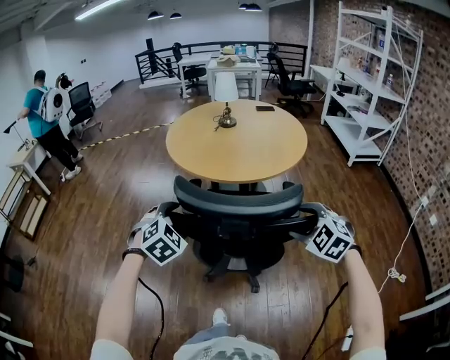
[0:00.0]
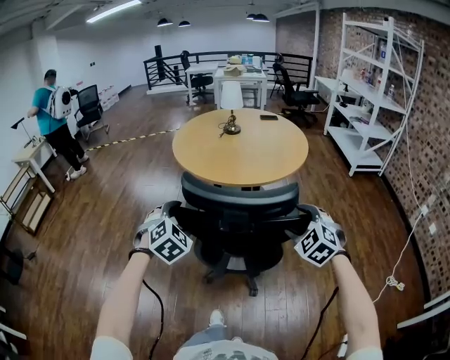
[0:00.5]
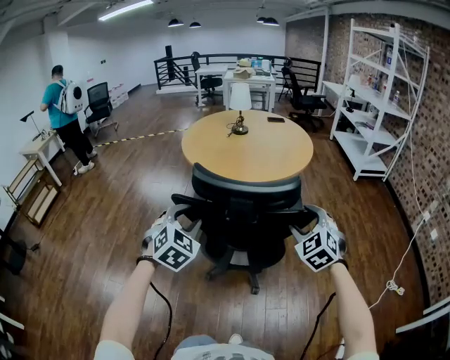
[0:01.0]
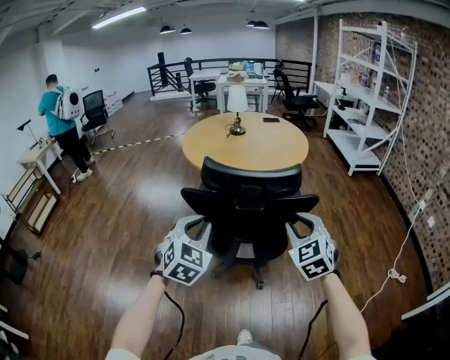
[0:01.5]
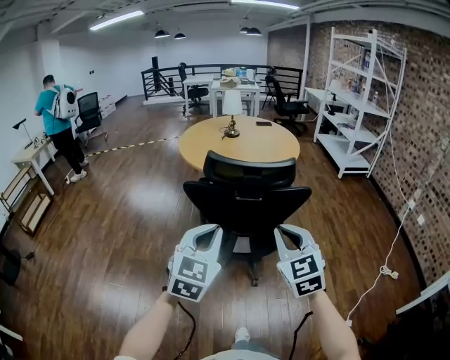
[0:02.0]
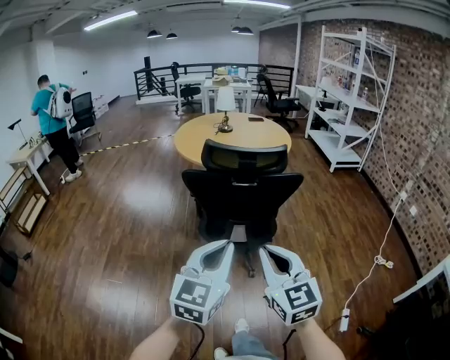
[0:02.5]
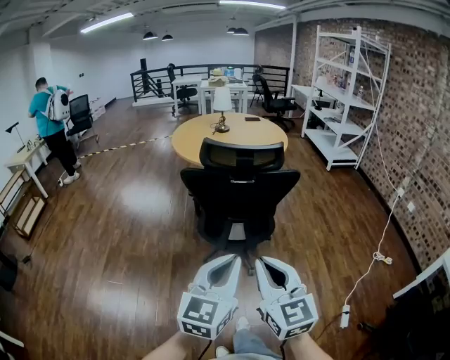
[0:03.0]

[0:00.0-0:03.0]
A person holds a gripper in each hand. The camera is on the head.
0:00.0 to 0:01.5: The right gripper shifts roughly 15 cm backward, upward and to the left, turns by roughly 30 degrees, and closes its fingers. Meanwhile the left gripper travels backward and upward by about 15 cm, turns by approximately 20 degrees, and closes its fingers.
0:01.5 to 0:03.0: The grippers both shift backward by roughly 25 cm. The left gripper turns by about 40 degrees. The right gripper changes its angle by some 30 degrees, and closes up.

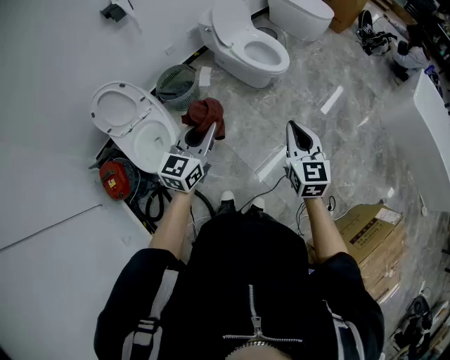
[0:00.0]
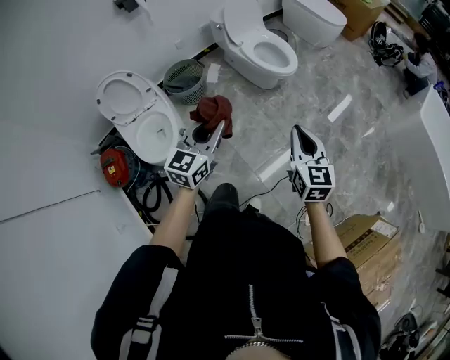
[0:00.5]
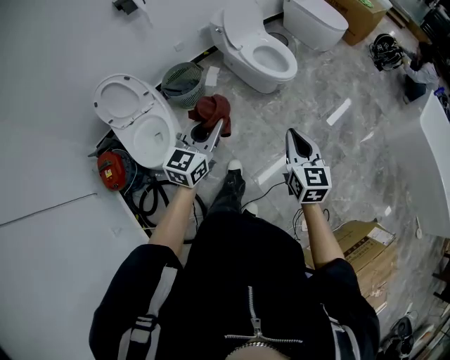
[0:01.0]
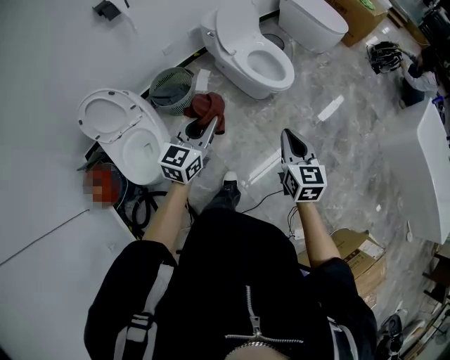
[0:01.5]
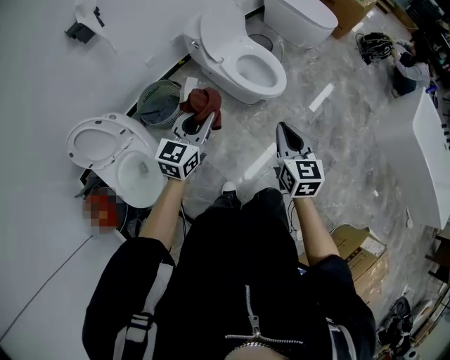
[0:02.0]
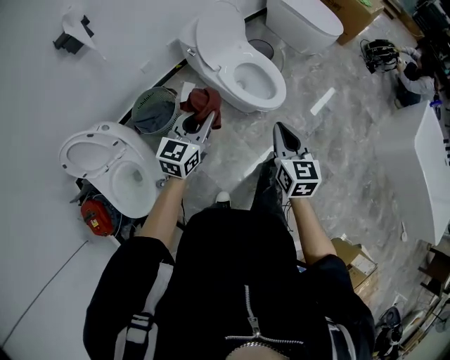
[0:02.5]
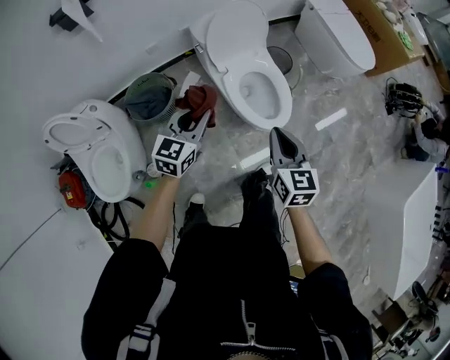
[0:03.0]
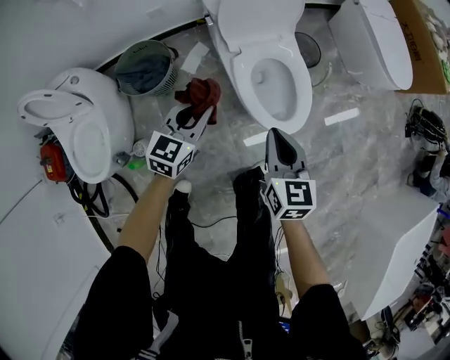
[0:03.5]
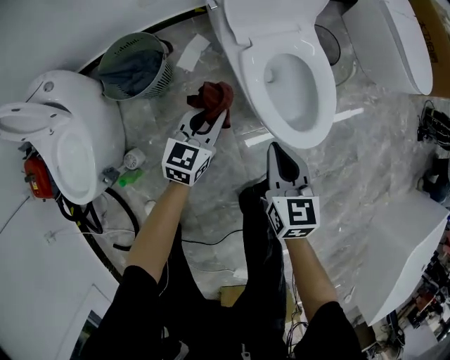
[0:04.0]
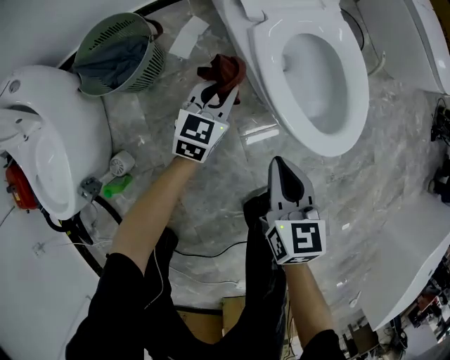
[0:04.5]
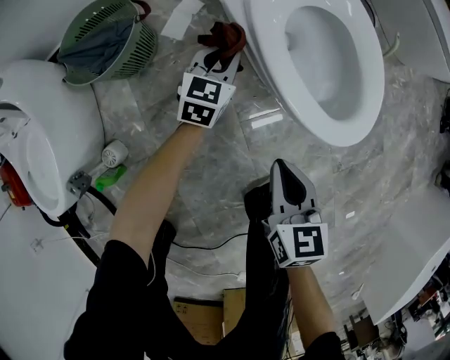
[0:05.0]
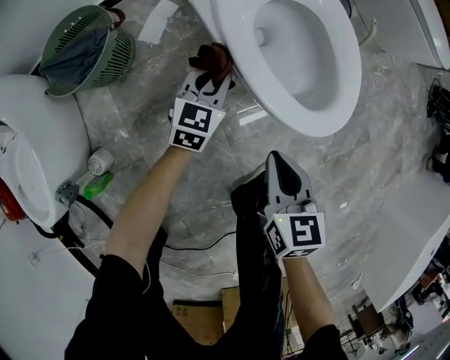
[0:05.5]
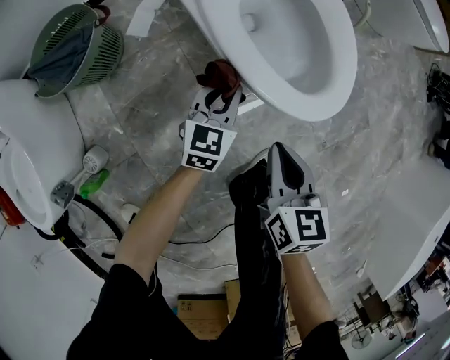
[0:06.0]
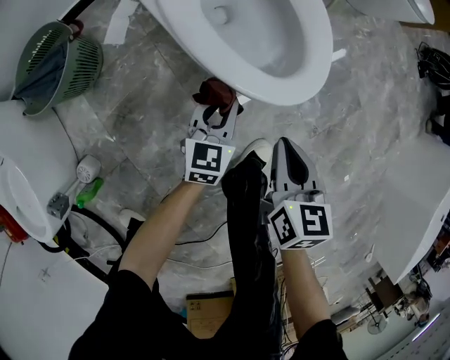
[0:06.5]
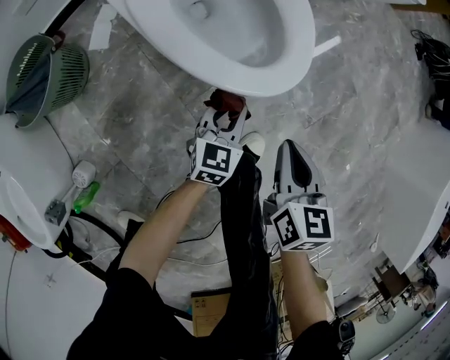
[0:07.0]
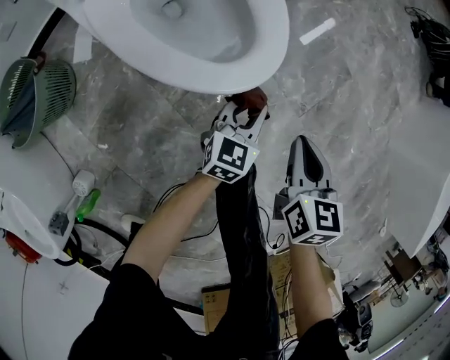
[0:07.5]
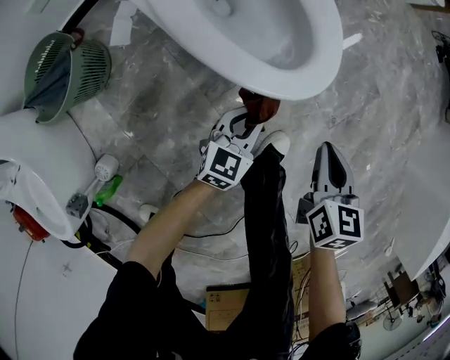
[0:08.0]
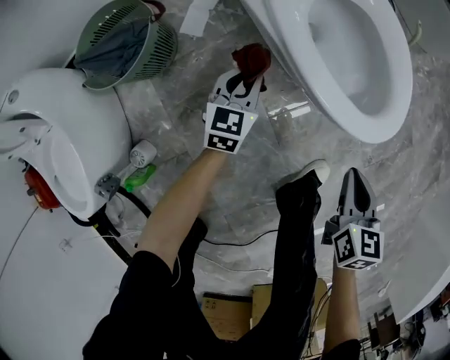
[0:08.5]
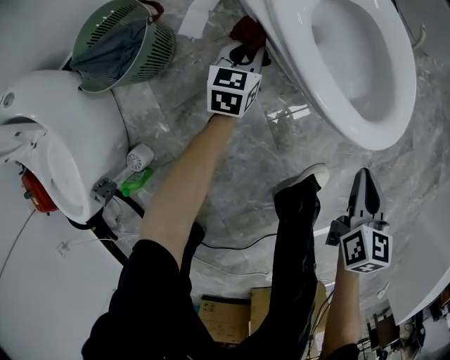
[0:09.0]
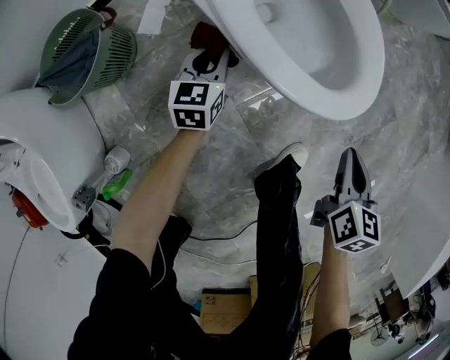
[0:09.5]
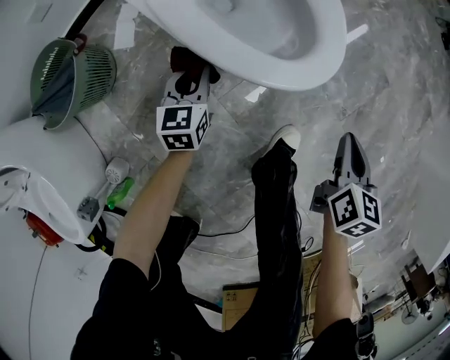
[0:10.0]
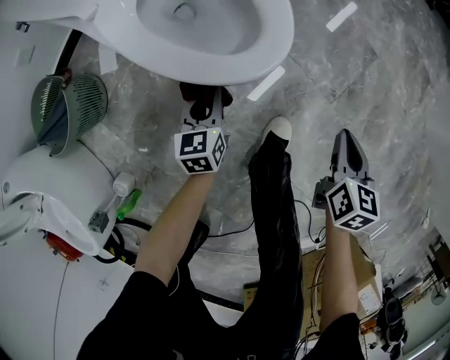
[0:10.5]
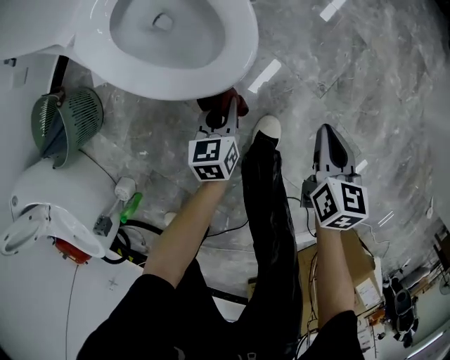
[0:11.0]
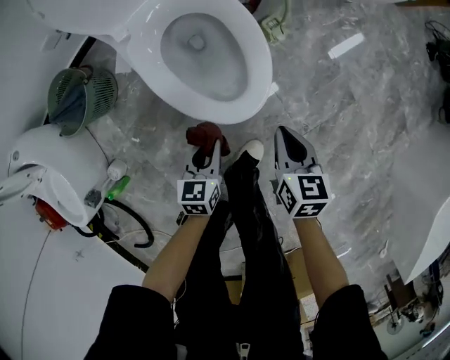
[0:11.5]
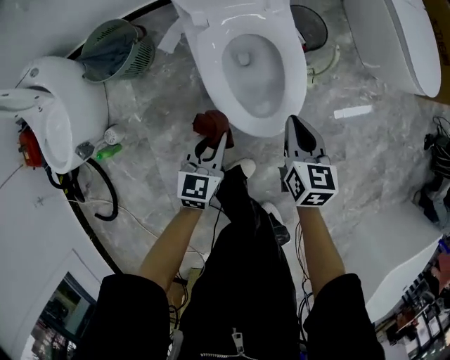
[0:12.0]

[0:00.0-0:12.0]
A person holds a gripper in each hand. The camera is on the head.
0:00.0 to 0:02.0: The two grippers go roughly 30 cm forward.
0:02.0 to 0:04.0: The grippers both shift downward and forward by about 50 cm. The right gripper rotates some 30 degrees; the left gripper swivels approximately 30 degrees.
0:04.0 to 0:06.0: Both grippers travel together downward and to the right, approximately 25 cm.
0:06.0 to 0:08.0: The right gripper shifts by approximately 15 cm, while the left gripper rotates some 20 degrees.
0:08.0 to 0:10.0: The right gripper reaches some 10 cm to the left, then returns. The left gripper goes roughly 20 cm to the left and forward, and changes its angle by approximately 20 degrees.
0:10.0 to 0:12.0: The right gripper changes place by about 25 cm, and rotates some 50 degrees. The left gripper shifts about 25 cm upward.

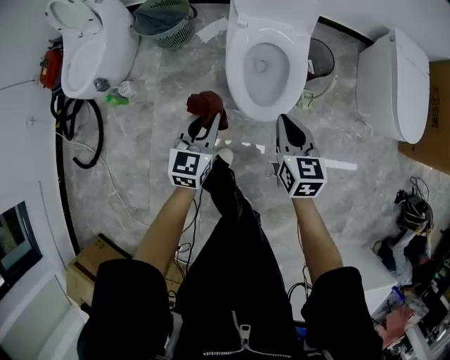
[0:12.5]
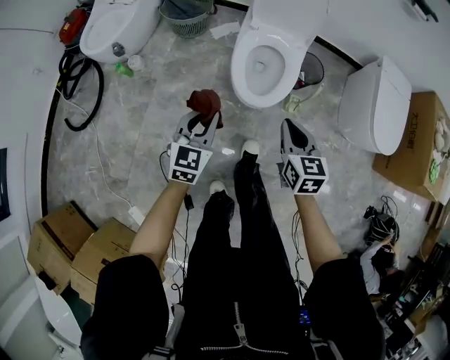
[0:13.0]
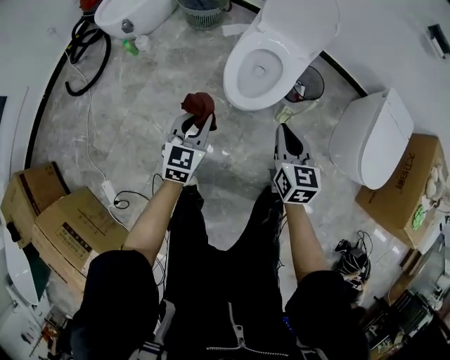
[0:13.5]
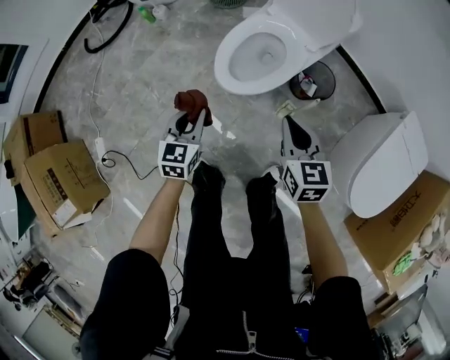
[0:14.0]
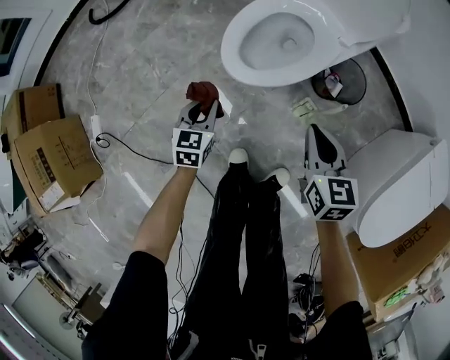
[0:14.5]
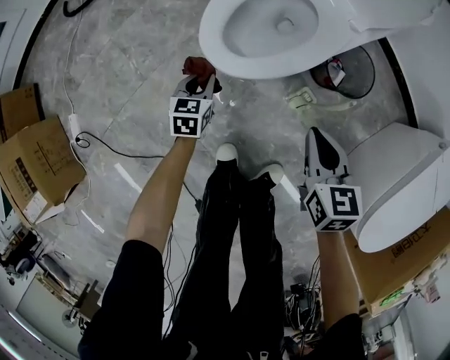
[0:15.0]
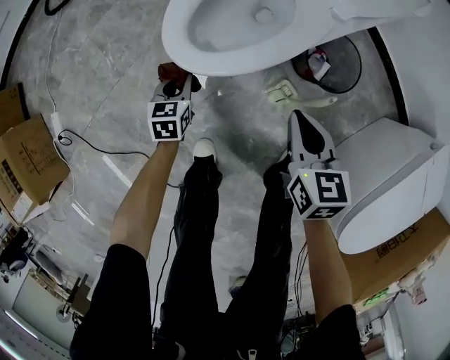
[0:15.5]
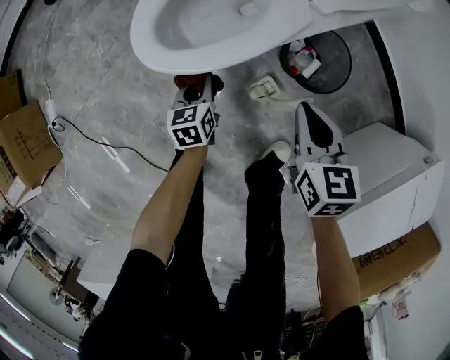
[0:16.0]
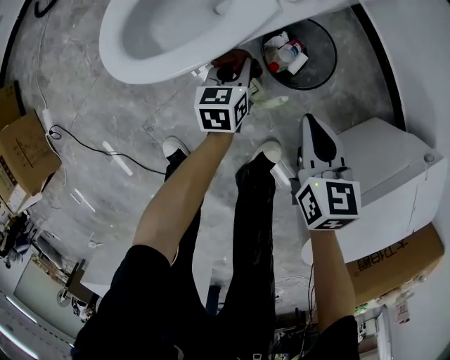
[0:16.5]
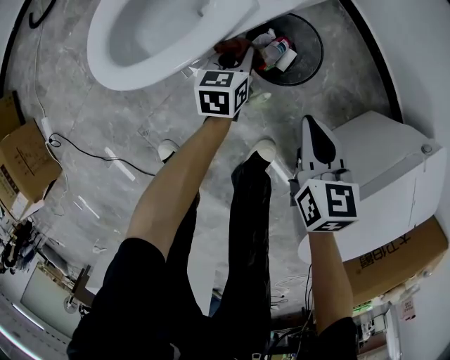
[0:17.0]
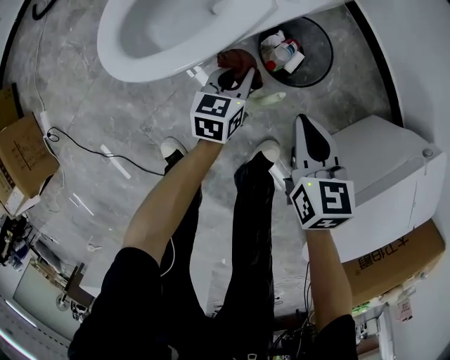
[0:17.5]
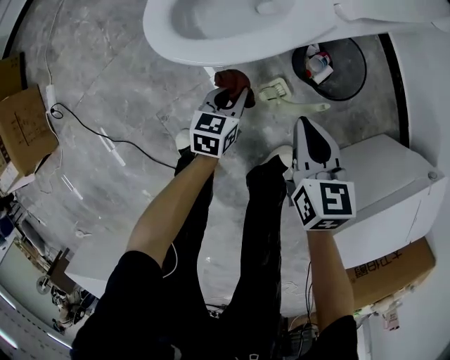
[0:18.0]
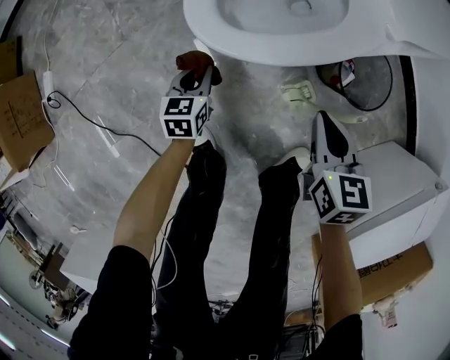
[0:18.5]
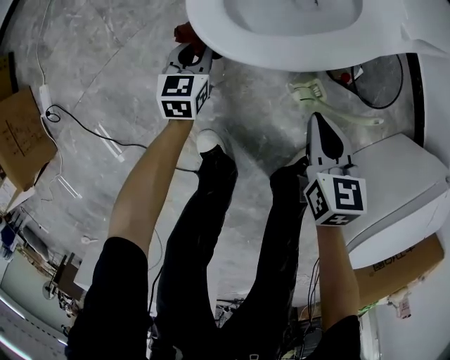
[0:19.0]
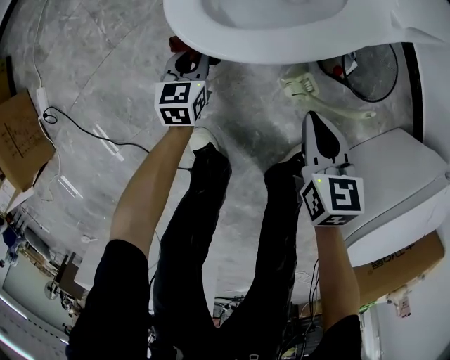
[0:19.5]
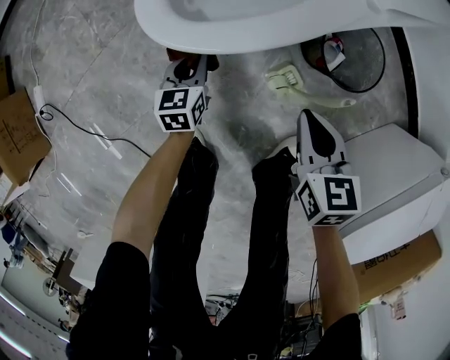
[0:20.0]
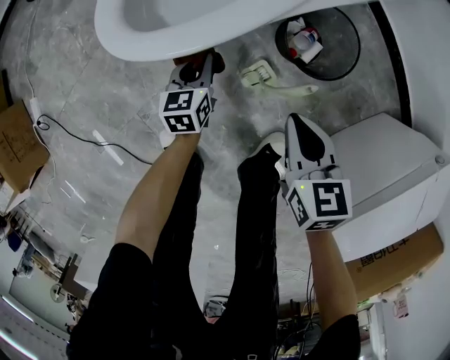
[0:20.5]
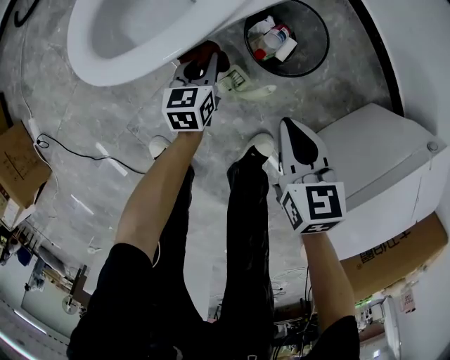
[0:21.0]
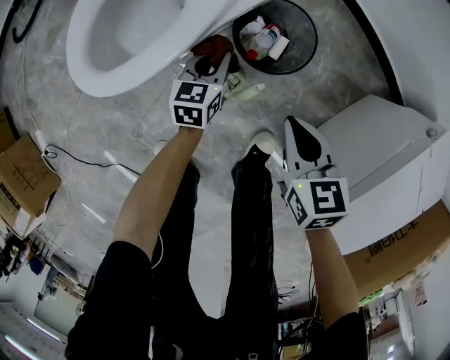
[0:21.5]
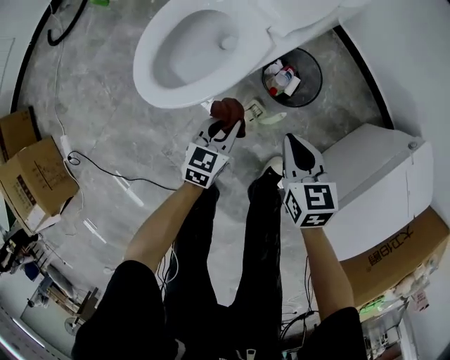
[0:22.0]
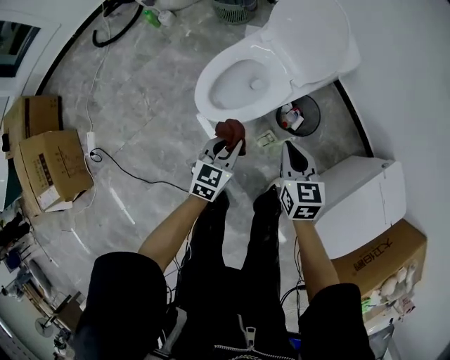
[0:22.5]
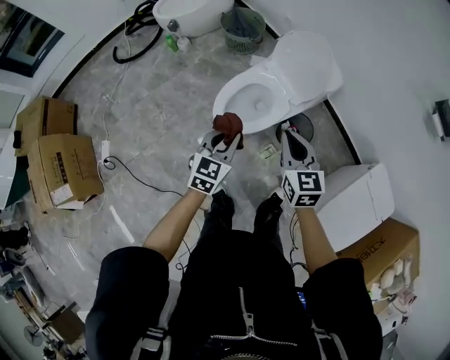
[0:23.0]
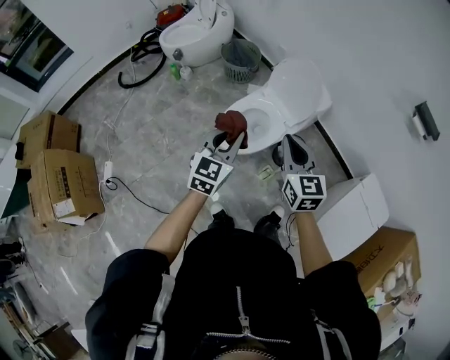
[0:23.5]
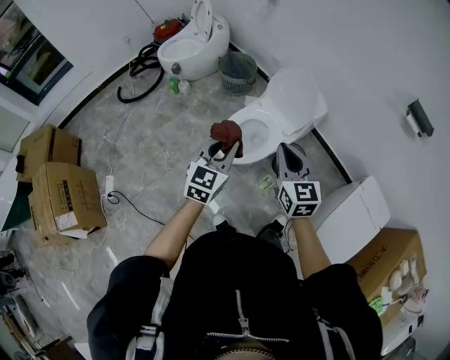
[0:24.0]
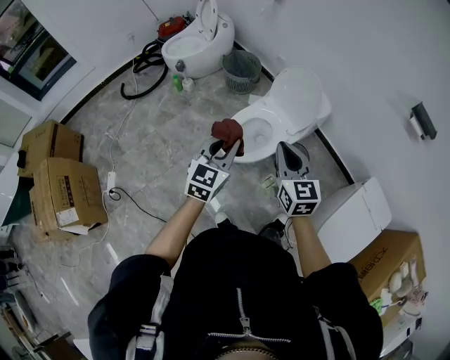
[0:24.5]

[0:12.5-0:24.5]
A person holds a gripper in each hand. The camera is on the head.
0:12.5 to 0:14.5: The right gripper moves about 25 cm, and changes its angle by some 40 degrees. The left gripper ends up about 30 cm from where it was, and swivels about 50 degrees.
0:14.5 to 0:16.5: Both grippers move to the right and downward, some 35 cm. The left gripper swivels about 20 degrees.
0:16.5 to 0:18.5: The right gripper heads to the left, covering about 20 cm. The left gripper travels to the left by about 30 cm.
0:18.5 to 0:20.5: The right gripper heads to the right, covering approximately 10 cm. Meanwhile the left gripper heads to the right, covering about 20 cm.
0:20.5 to 0:22.5: The grippers both shift upward by some 35 cm. The left gripper rotates some 30 degrees.
0:22.5 to 0:24.5: The two grippers go some 30 cm upward. The right gripper changes its angle by about 20 degrees. The left gripper changes its angle by about 20 degrees.
